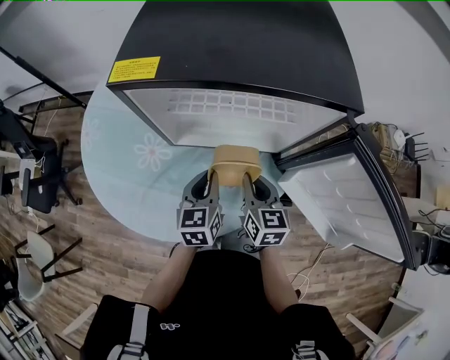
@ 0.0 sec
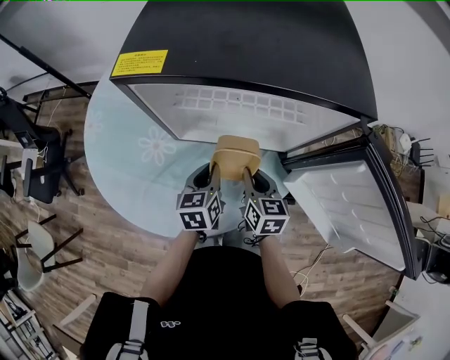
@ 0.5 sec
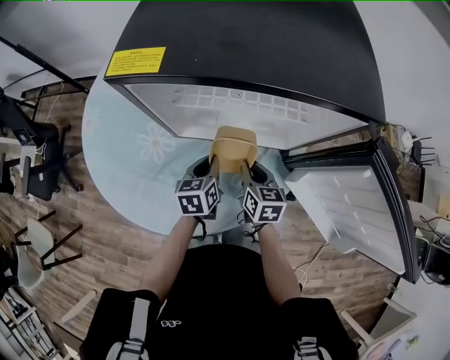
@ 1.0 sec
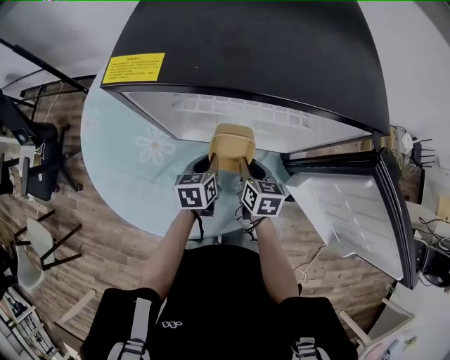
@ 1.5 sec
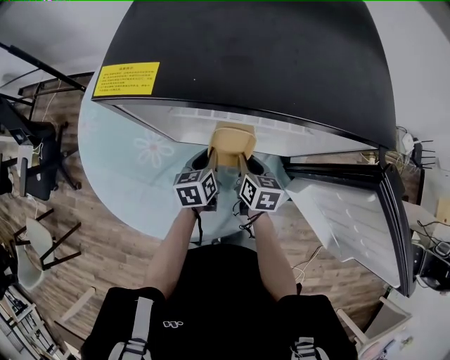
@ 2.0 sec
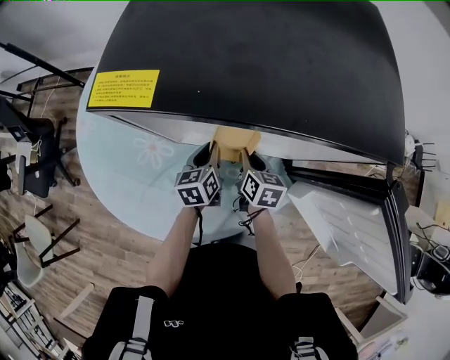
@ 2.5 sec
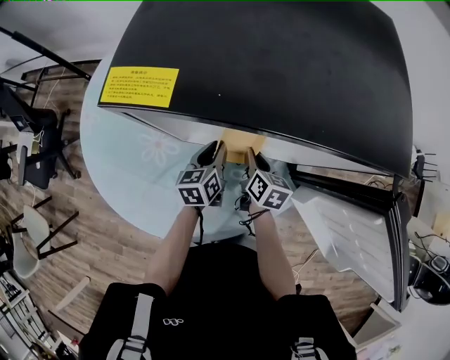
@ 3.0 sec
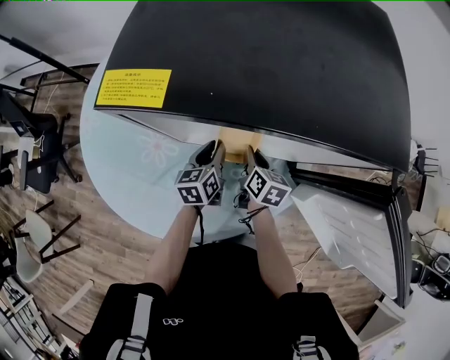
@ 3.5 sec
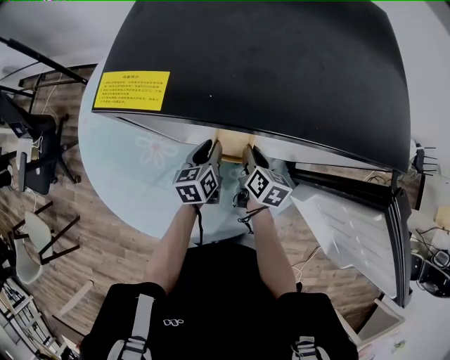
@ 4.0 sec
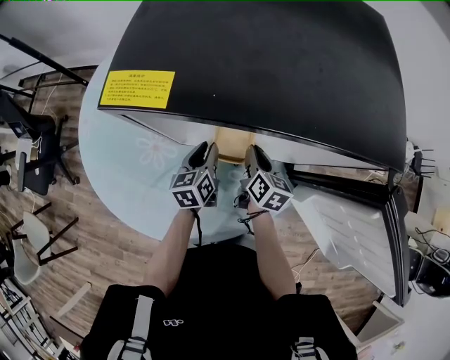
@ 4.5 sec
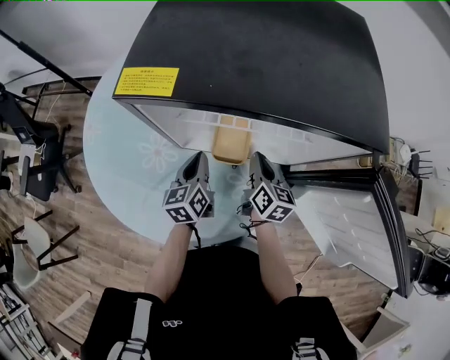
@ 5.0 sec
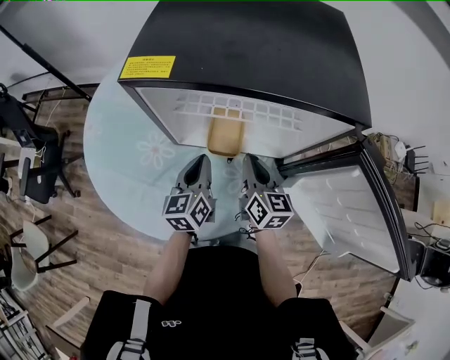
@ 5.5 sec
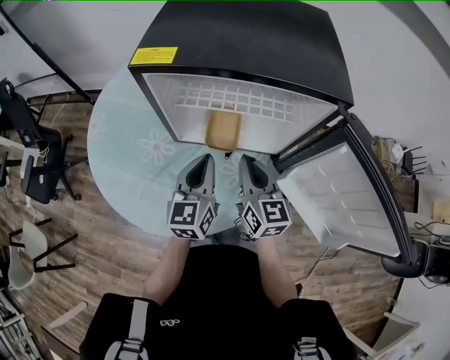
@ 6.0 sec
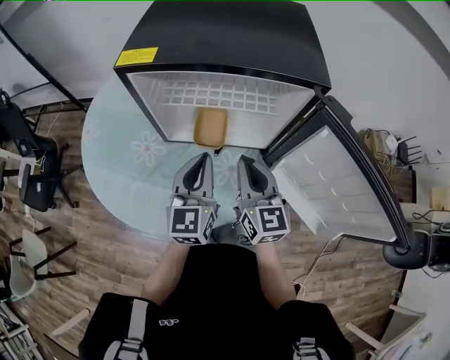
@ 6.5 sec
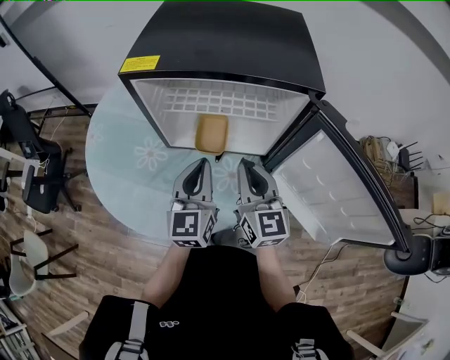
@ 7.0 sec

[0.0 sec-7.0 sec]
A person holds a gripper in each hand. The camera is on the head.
0.0 sec to 2.0 sec: Both grippers travel together downward and forward, roughly 15 cm.
2.0 sec to 3.5 sec: There are only small adjustments of the grippers.
3.5 sec to 5.0 sec: Both grippers move upward, about 5 cm. The left gripper closes up.
5.0 sec to 7.0 sec: The right gripper travels upward and backward by roughly 20 cm, and turns by about 30 degrees, while the left gripper moves upward, backward and to the right, roughly 20 cm, and turns by about 30 degrees.

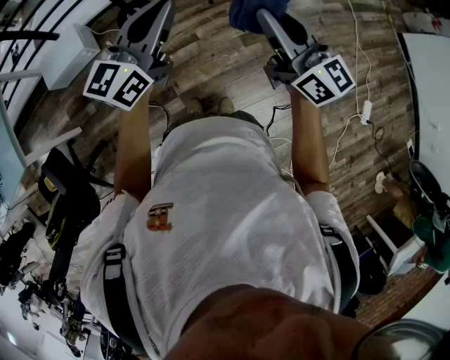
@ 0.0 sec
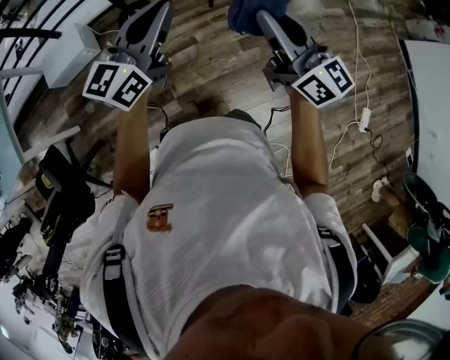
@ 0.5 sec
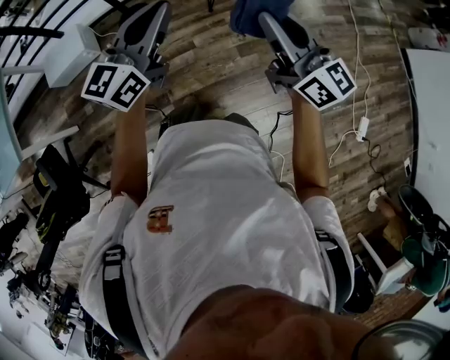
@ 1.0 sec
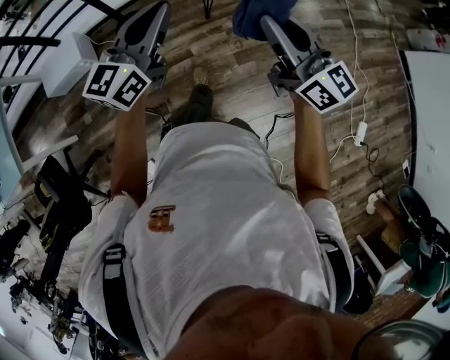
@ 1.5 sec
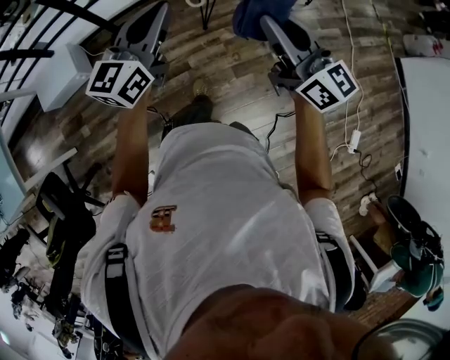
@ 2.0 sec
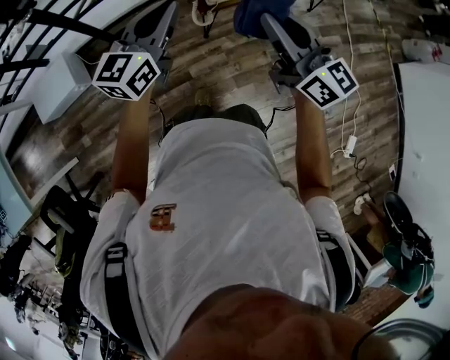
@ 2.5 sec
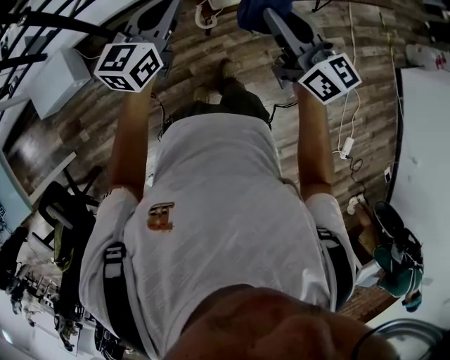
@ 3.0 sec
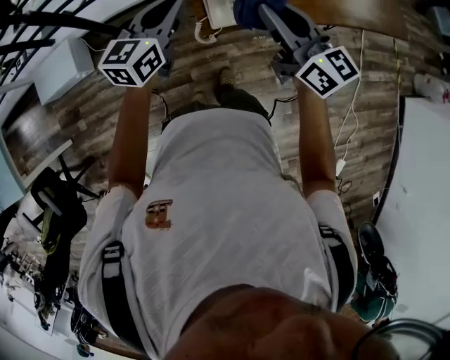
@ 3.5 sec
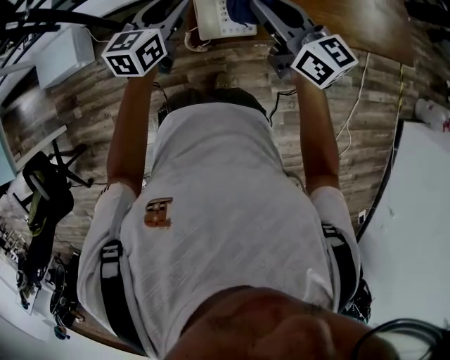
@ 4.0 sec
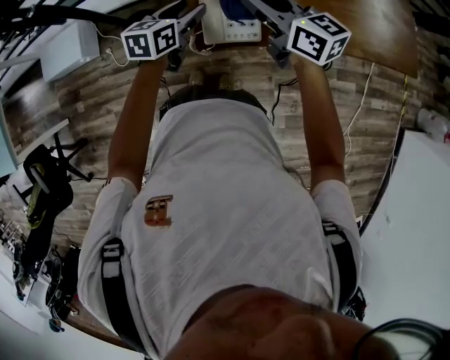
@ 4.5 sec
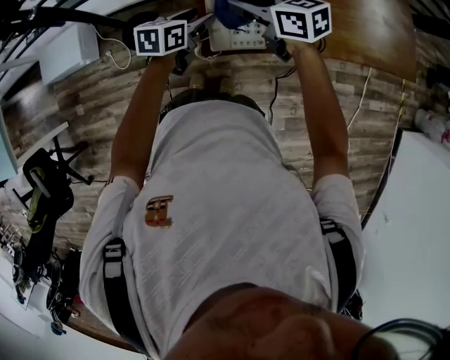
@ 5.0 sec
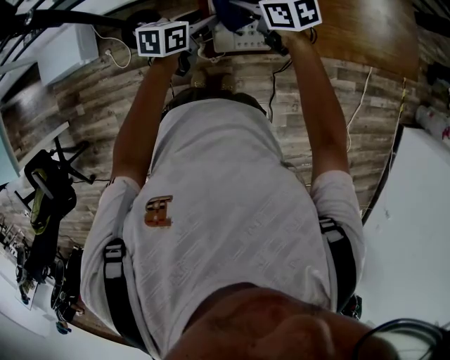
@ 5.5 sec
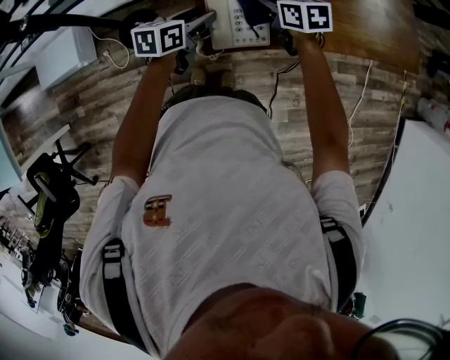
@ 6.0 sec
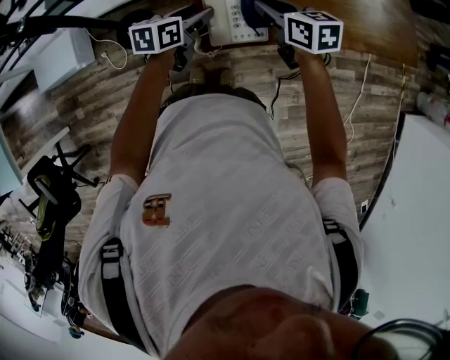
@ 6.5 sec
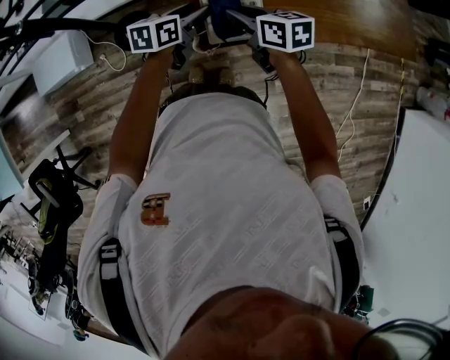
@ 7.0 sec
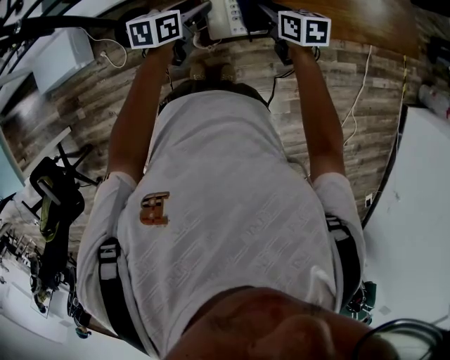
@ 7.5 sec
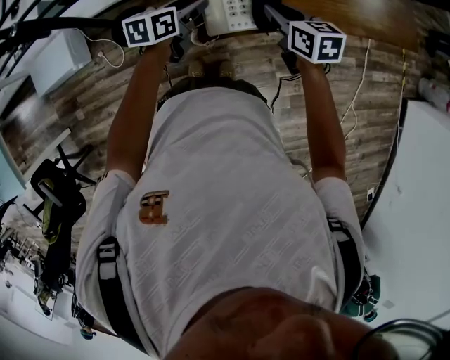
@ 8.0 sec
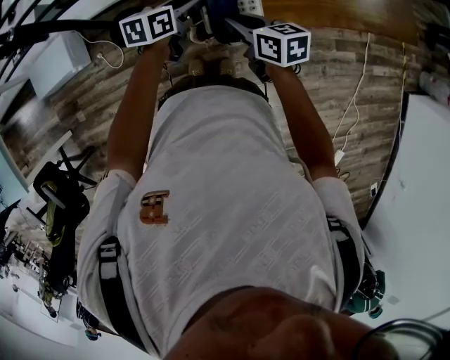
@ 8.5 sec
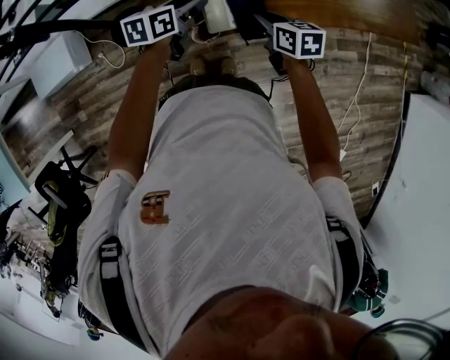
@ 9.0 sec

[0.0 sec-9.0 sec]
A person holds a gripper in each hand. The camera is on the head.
0.0 sec to 2.0 sec: The two grippers go some 25 cm forward.
2.0 sec to 4.5 sec: The two grippers travel together, forward, approximately 50 cm. The right gripper changes its angle by roughly 30 degrees; the left gripper shifts approximately 20 cm downward, tilts its fingers roughly 30 degrees downward, and opens up.
4.5 sec to 7.0 sec: The right gripper shifts some 10 cm downward, and rotates approximately 20 degrees; the left gripper changes place by about 5 cm.
7.0 sec to 9.0 sec: The right gripper moves left and right over roughly 10 cm, changing direction 2 times.

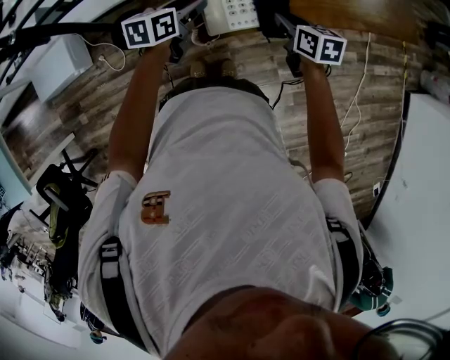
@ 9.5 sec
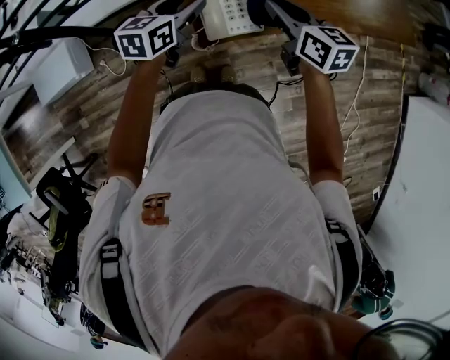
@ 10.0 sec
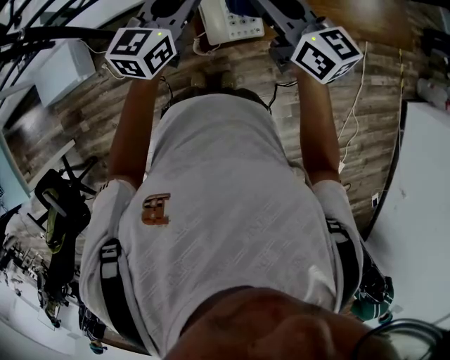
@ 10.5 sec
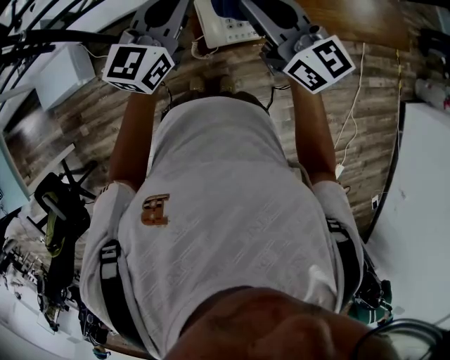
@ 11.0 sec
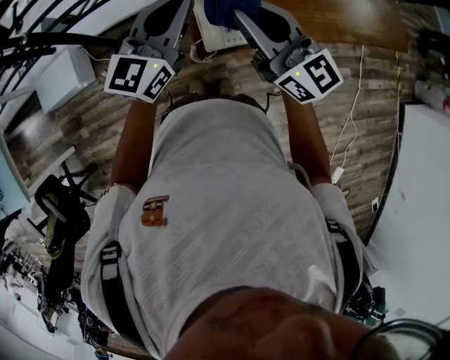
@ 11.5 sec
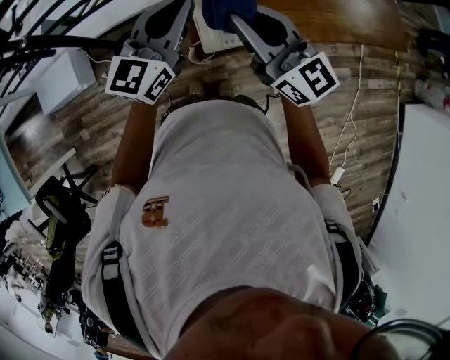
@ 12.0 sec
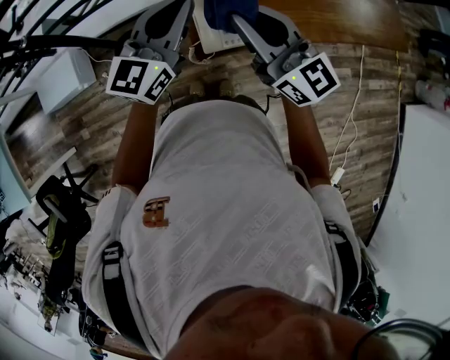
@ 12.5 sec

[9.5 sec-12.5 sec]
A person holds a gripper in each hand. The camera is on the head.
9.5 sec to 11.0 sec: The right gripper shifts some 25 cm upward and to the left, and points its fingers some 50 degrees further upward; the left gripper heads upward, covering some 20 cm, points its fingers about 30 degrees further upward, and closes its fingers.
11.0 sec to 12.5 sec: The grippers make only small movements.

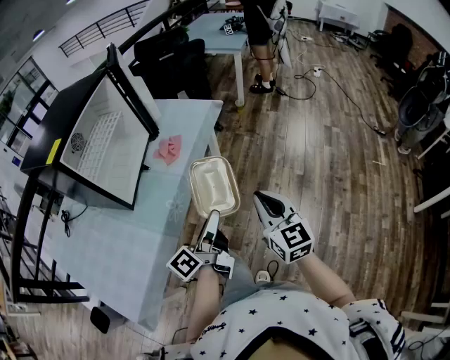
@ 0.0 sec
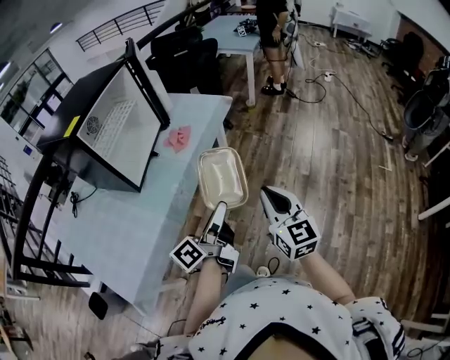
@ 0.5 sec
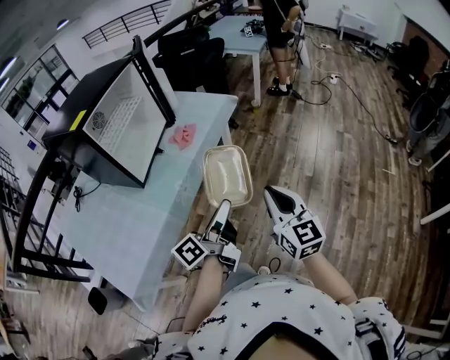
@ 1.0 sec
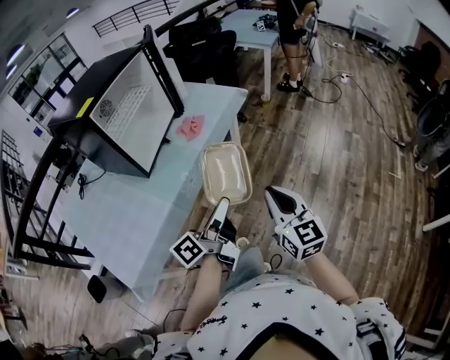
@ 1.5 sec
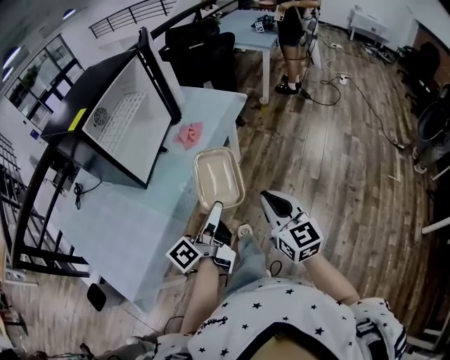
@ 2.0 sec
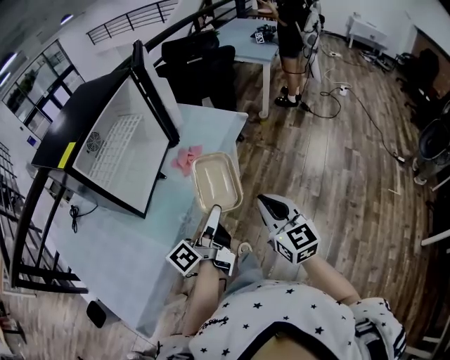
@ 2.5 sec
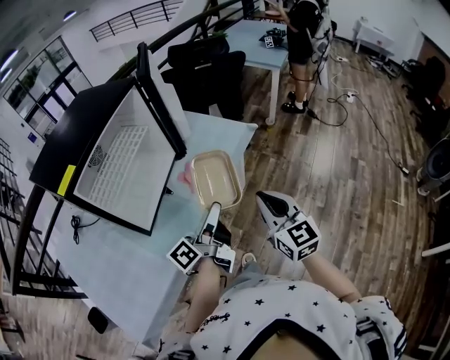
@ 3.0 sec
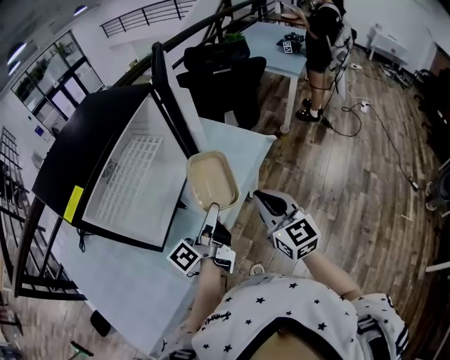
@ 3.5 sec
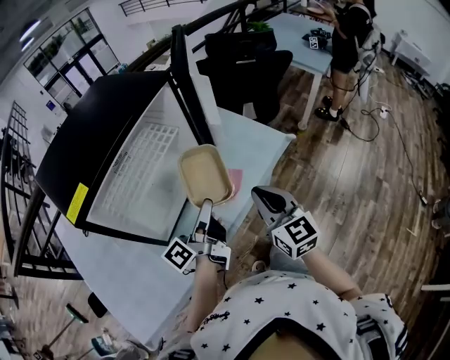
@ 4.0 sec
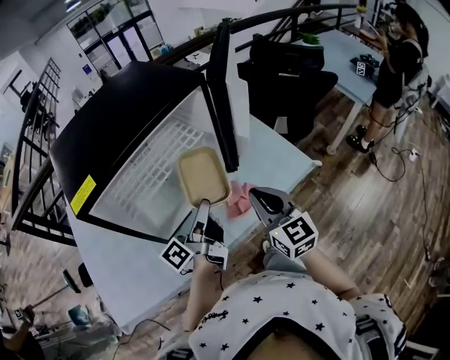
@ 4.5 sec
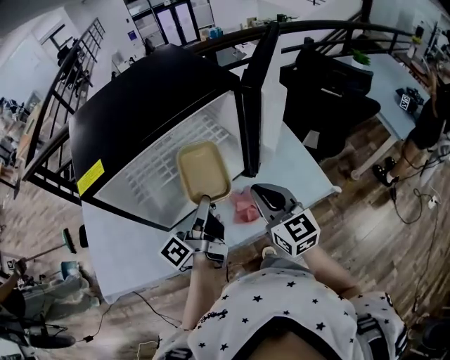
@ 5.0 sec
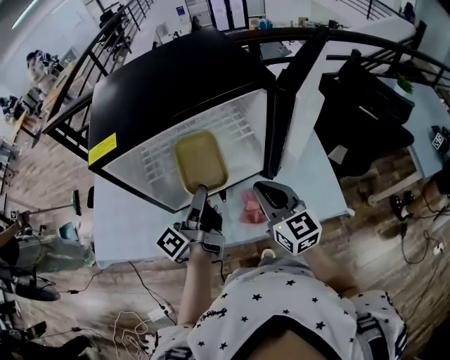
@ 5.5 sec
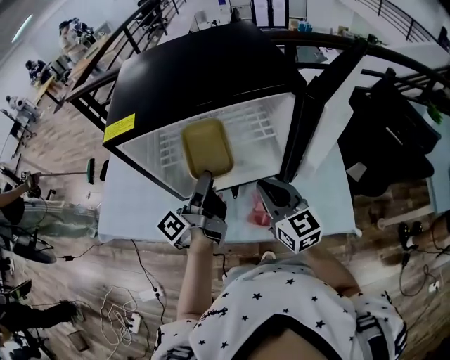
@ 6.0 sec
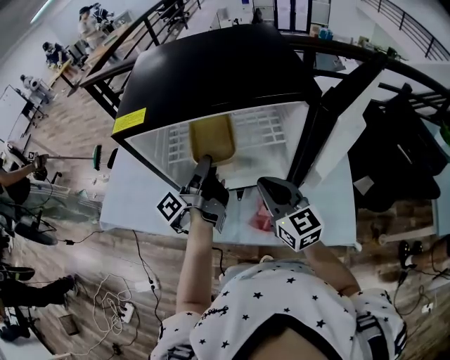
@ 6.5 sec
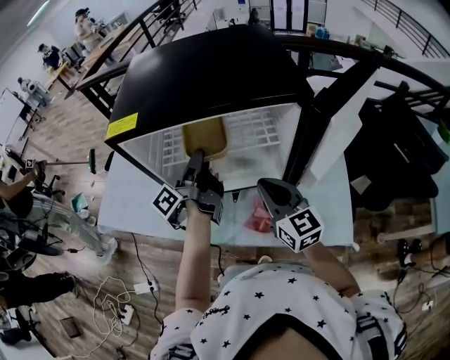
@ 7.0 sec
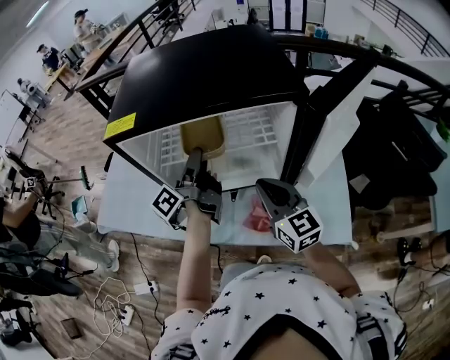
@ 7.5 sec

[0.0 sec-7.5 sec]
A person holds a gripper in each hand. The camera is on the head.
2.0 sec to 4.0 sec: The two grippers go about 30 cm forward.
4.0 sec to 5.5 sec: The right gripper moves some 15 cm, and turns by about 40 degrees; the left gripper changes place by approximately 10 cm, and rotates roughly 40 degrees.
5.5 sec to 7.5 sec: The left gripper is displaced forward by about 10 cm.
